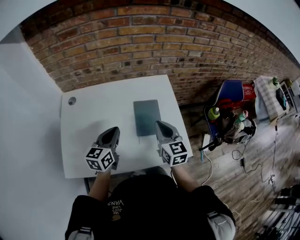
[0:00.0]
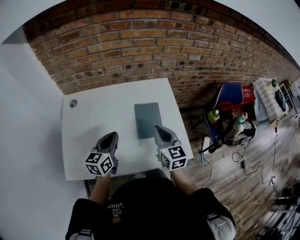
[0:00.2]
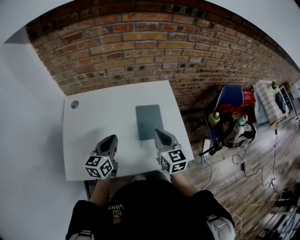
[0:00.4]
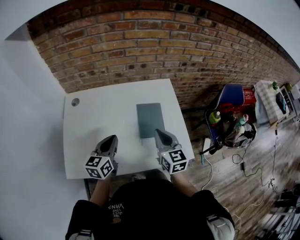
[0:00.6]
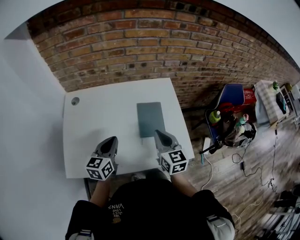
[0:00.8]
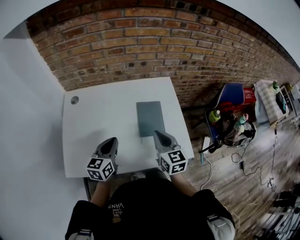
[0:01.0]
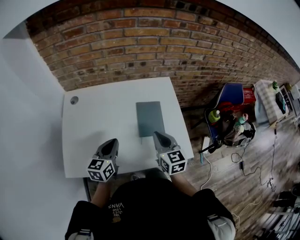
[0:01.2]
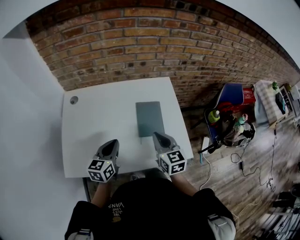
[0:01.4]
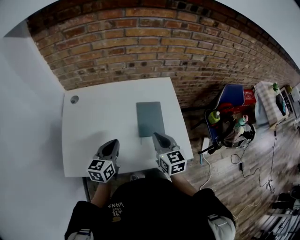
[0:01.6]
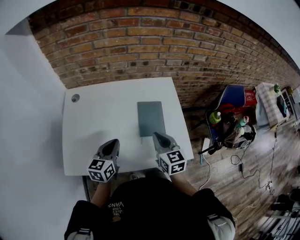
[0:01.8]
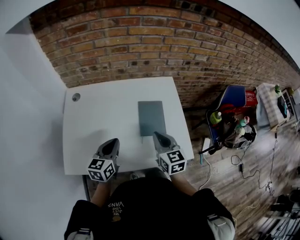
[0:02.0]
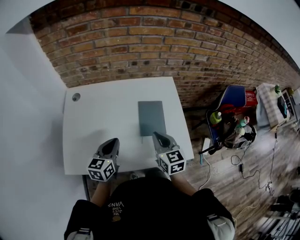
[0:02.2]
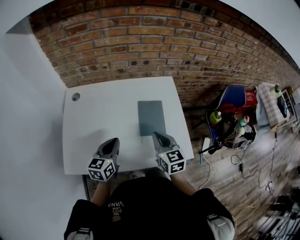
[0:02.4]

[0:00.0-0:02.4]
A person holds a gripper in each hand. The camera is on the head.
0:00.0 to 0:01.2: The right gripper moves about 5 cm, while the left gripper moves some 5 cm.
0:01.2 to 0:02.4: Both grippers stay put.

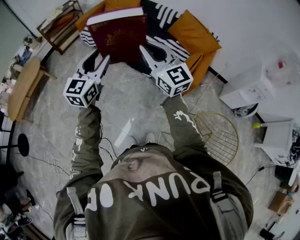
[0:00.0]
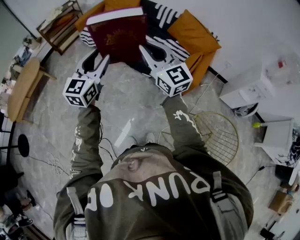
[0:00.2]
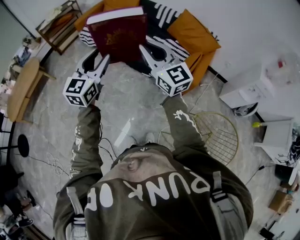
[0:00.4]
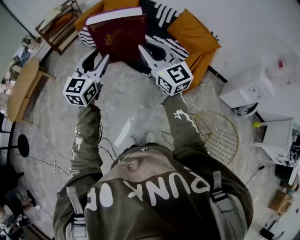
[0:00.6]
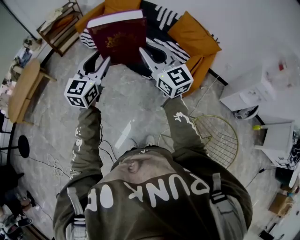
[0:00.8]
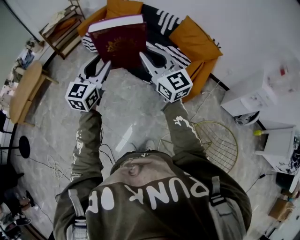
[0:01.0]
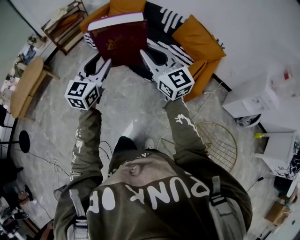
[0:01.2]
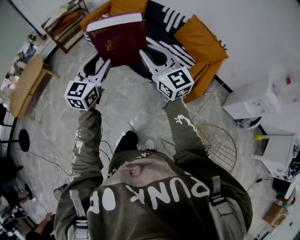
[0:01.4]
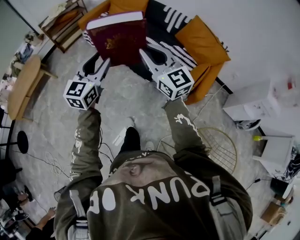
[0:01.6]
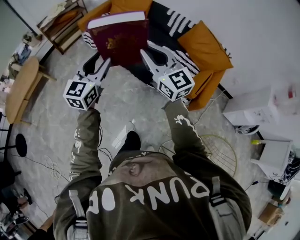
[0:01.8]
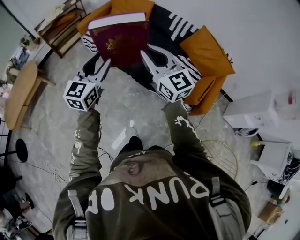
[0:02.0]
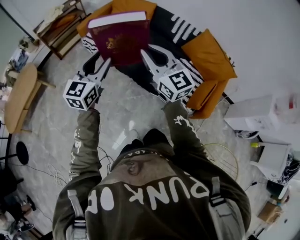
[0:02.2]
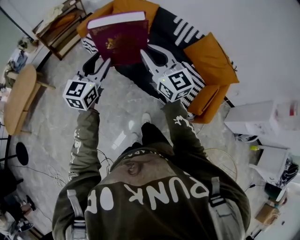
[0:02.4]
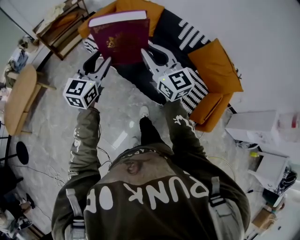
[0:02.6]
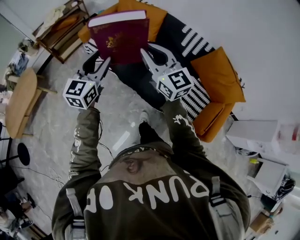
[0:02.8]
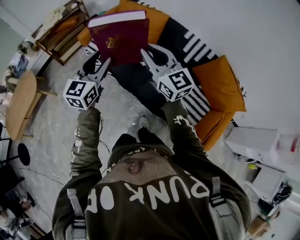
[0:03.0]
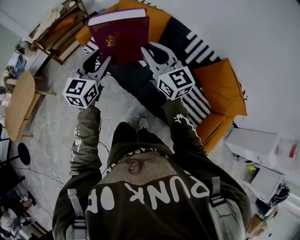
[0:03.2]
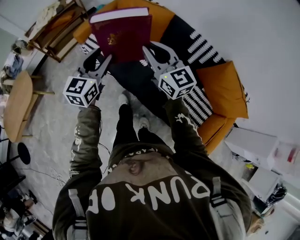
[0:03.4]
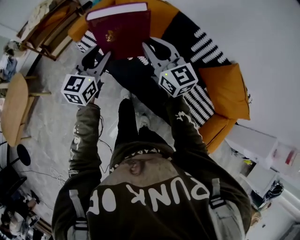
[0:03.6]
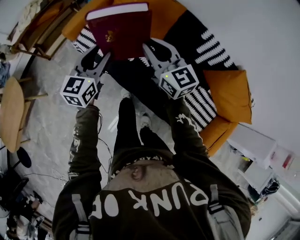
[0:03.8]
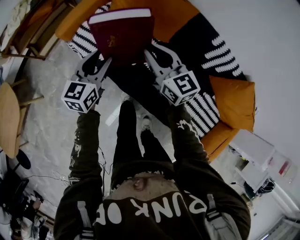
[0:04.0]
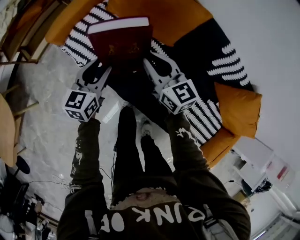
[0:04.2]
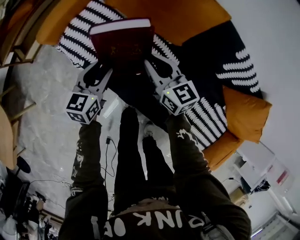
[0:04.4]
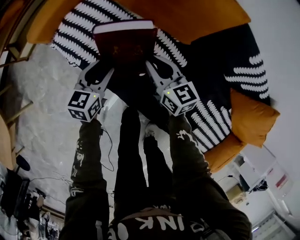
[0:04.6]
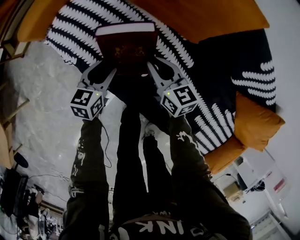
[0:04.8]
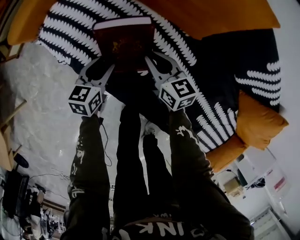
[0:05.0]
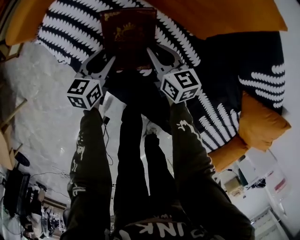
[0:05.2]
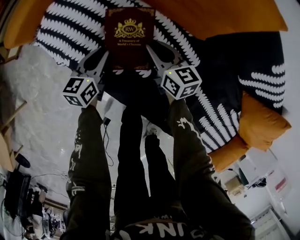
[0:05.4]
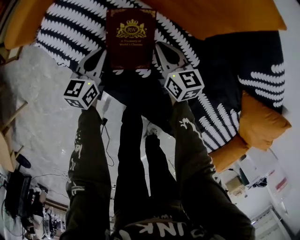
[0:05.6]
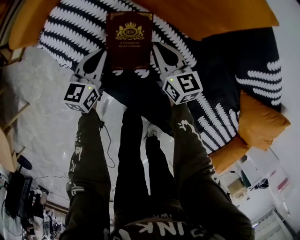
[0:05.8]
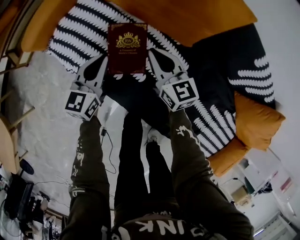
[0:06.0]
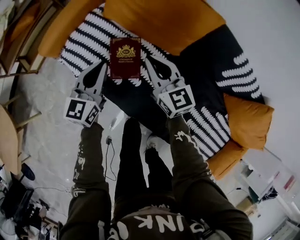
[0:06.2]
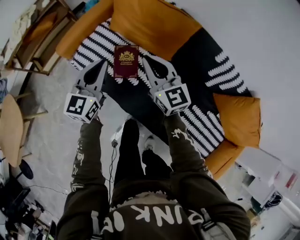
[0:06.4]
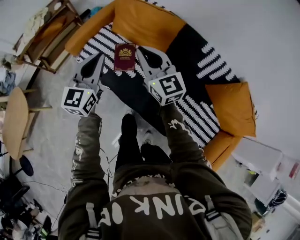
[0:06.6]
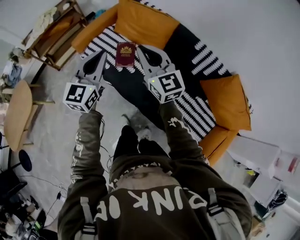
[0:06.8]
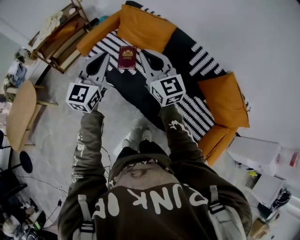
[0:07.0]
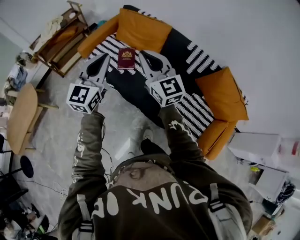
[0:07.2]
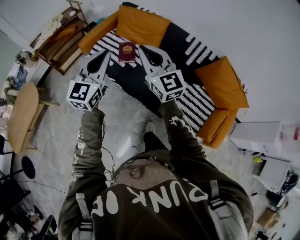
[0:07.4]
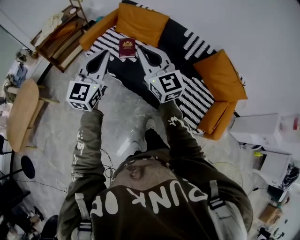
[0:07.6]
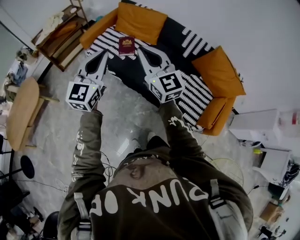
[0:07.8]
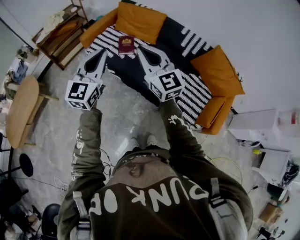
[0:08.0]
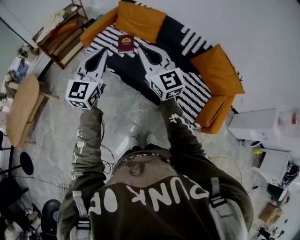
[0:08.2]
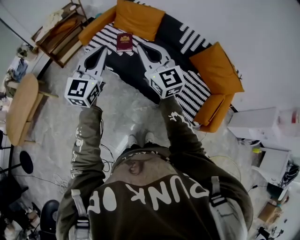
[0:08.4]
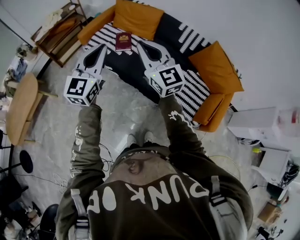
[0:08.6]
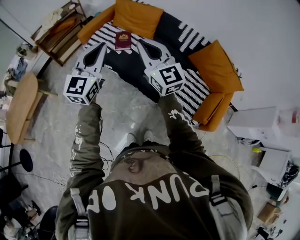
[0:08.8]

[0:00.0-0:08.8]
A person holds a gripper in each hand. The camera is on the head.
0:00.0 to 0:01.4: The grippers both shift forward by roughly 5 cm.
0:01.4 to 0:03.0: The two grippers travel together, forward, roughly 50 cm.
0:03.0 to 0:04.4: The pair of grippers is taken forward, roughly 40 cm. The two grippers go roughly 40 cm downward. The right gripper changes its angle by about 30 degrees. Meanwhile the left gripper rotates about 30 degrees.
0:04.4 to 0:05.8: The right gripper is displaced downward by about 20 cm; the left gripper heads downward and forward, covering some 20 cm, and closes.
0:05.8 to 0:07.4: Both grippers are carried backward, approximately 50 cm. The two grippers go roughly 60 cm upward. The left gripper turns by some 40 degrees. The right gripper turns by roughly 40 degrees.
0:07.4 to 0:08.8: Both grippers move backward, about 10 cm.

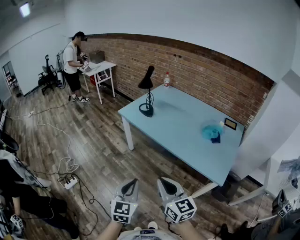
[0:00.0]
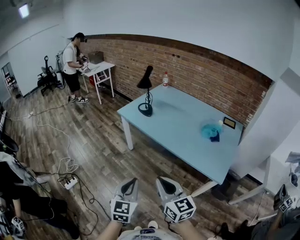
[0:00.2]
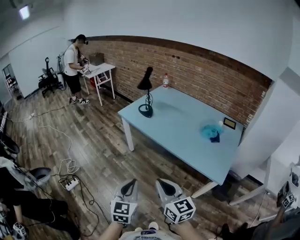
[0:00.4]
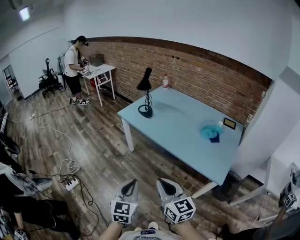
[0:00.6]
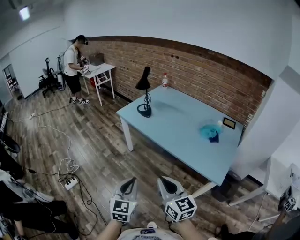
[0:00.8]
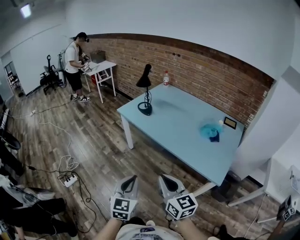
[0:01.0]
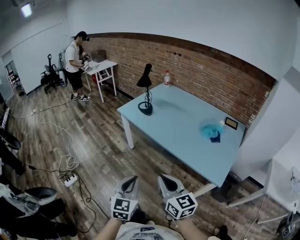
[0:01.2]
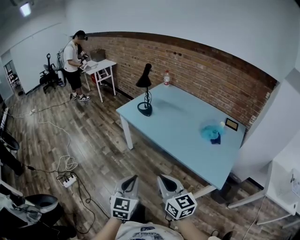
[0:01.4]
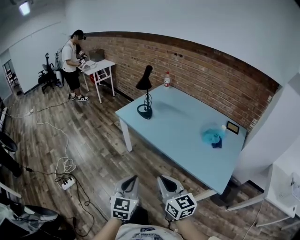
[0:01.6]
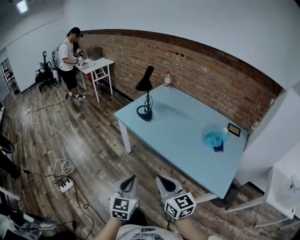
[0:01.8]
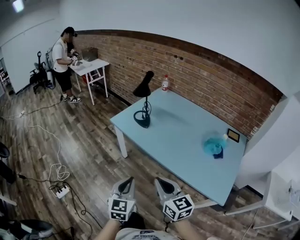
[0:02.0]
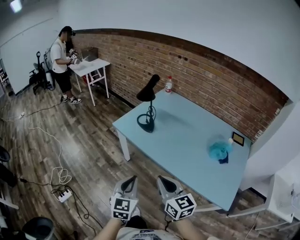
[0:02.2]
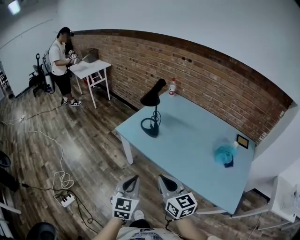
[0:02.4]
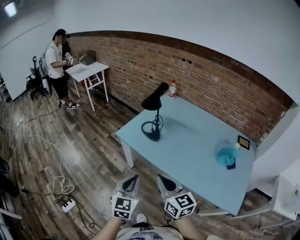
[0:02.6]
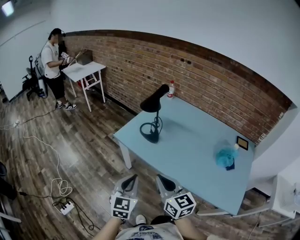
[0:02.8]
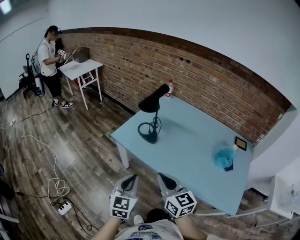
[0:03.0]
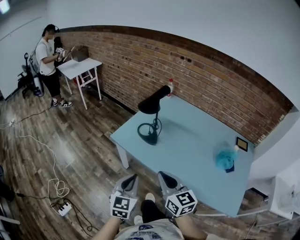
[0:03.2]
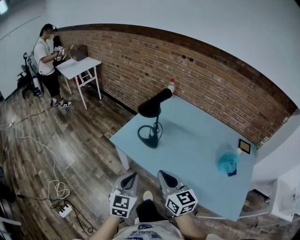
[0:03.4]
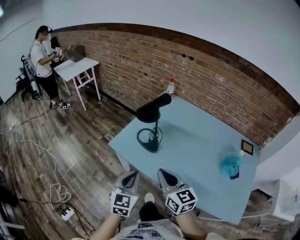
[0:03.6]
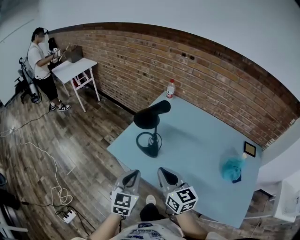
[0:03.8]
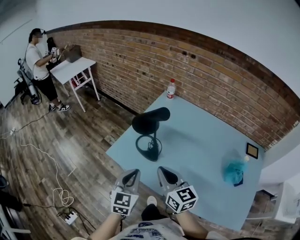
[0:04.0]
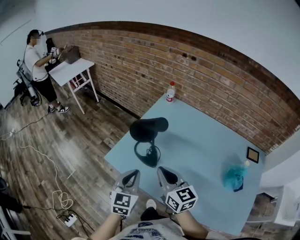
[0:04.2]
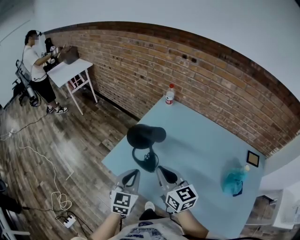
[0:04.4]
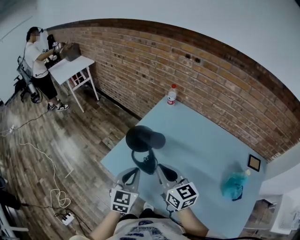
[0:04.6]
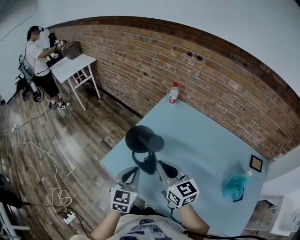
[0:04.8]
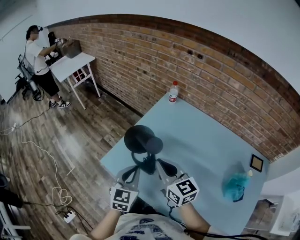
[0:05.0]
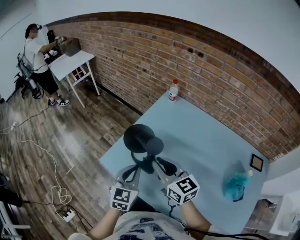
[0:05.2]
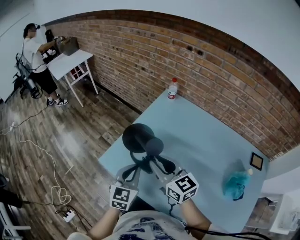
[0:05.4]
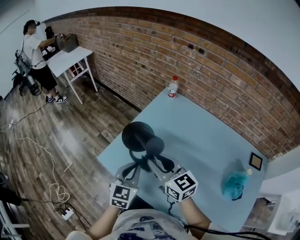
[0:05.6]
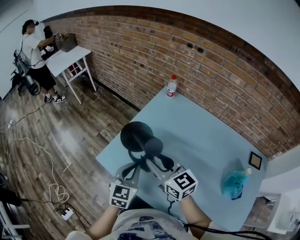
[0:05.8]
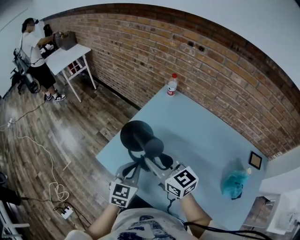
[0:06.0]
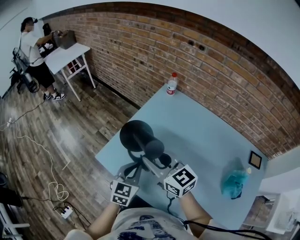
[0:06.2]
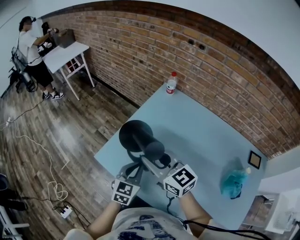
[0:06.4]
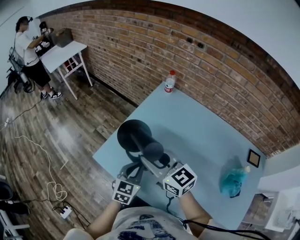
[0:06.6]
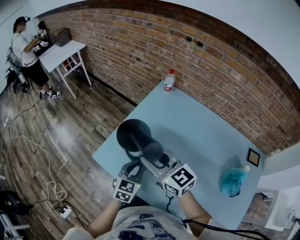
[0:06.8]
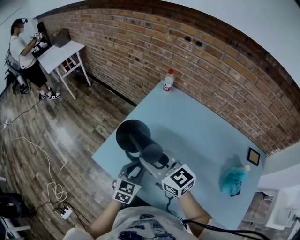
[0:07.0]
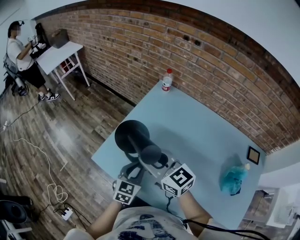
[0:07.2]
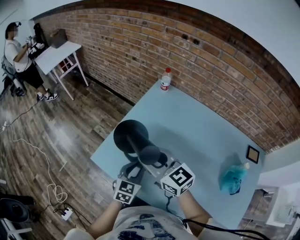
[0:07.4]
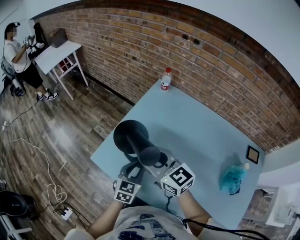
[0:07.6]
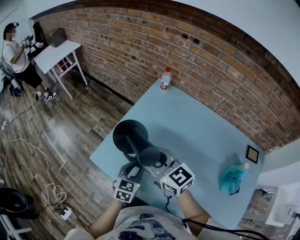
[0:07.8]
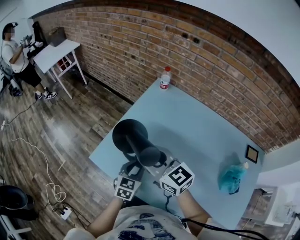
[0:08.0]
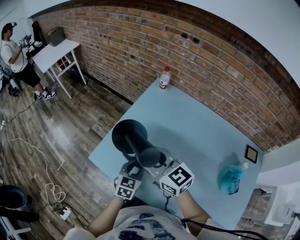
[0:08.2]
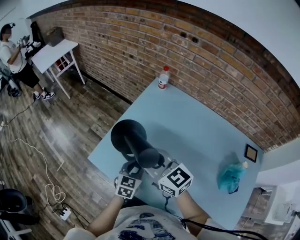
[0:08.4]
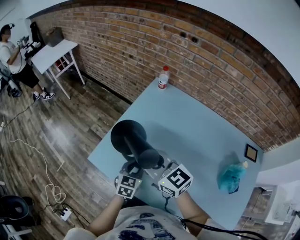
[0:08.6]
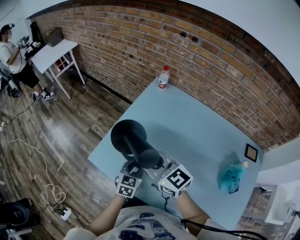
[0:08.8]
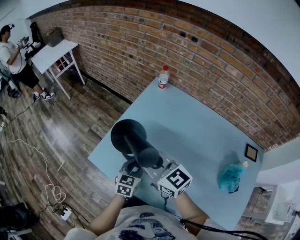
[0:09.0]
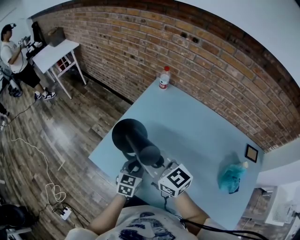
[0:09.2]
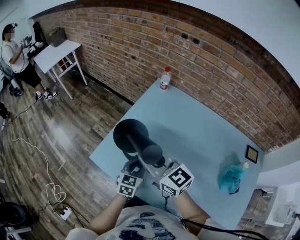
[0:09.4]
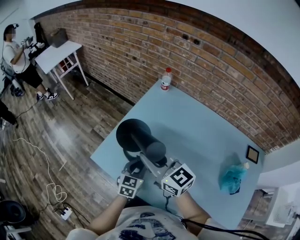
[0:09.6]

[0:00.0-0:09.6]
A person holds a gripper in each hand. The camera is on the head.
0:00.0 to 0:01.6: Both grippers move forward, roughly 5 cm.
0:01.6 to 0:03.2: Both grippers move forward, about 35 cm.
0:03.2 to 0:04.8: Both grippers move forward, some 30 cm.
0:04.8 to 0:06.4: The left gripper travels downward by roughly 5 cm; the right gripper moves some 5 cm, and opens.
0:06.4 to 0:08.0: The left gripper travels downward by roughly 5 cm.
0:08.0 to 0:09.6: The right gripper closes up.

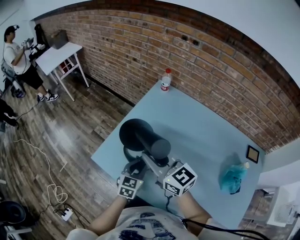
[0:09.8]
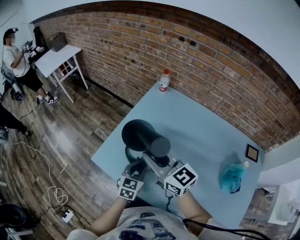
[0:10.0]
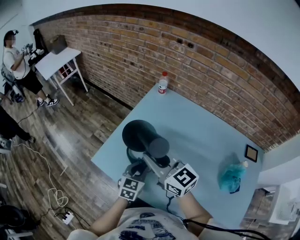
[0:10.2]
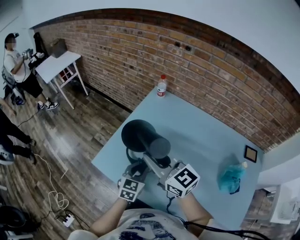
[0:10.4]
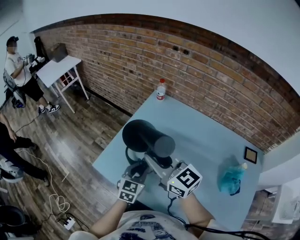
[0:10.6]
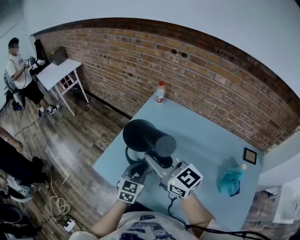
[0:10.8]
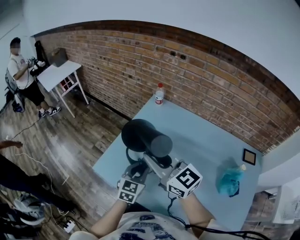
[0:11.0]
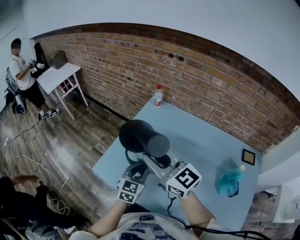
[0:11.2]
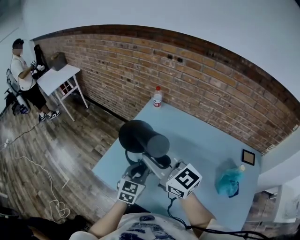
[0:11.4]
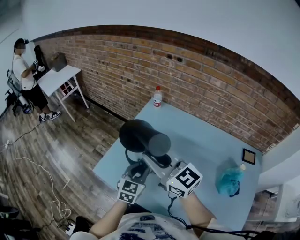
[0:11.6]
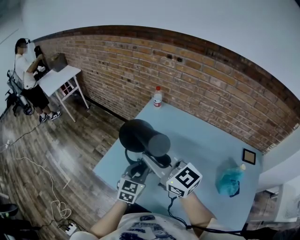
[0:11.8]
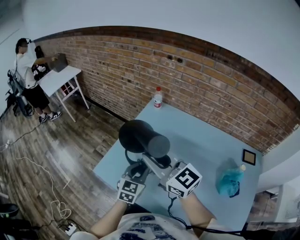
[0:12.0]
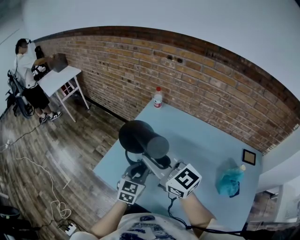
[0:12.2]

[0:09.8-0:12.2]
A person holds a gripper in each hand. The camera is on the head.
0:09.8 to 0:11.0: Both grippers move upward, approximately 10 cm.
0:11.0 to 0:12.2: The grippers stay close to where they were, moving slightly.
